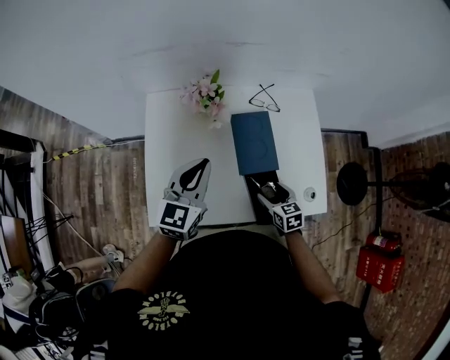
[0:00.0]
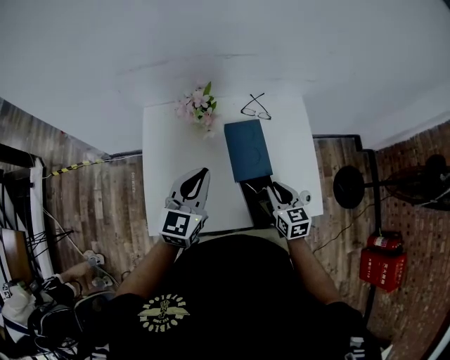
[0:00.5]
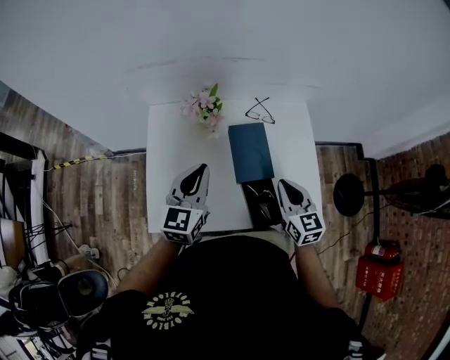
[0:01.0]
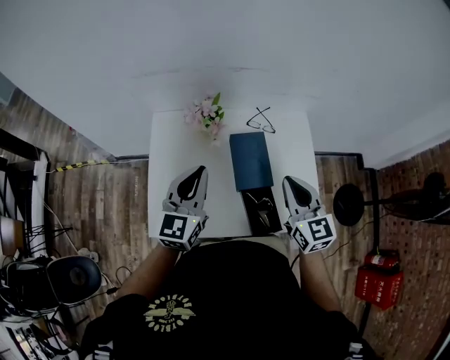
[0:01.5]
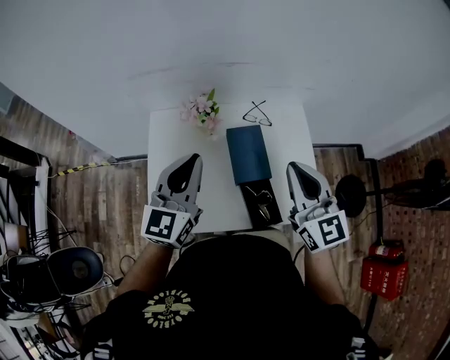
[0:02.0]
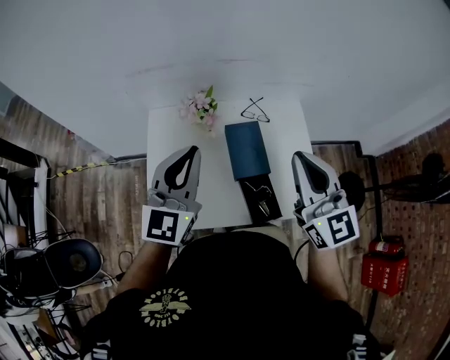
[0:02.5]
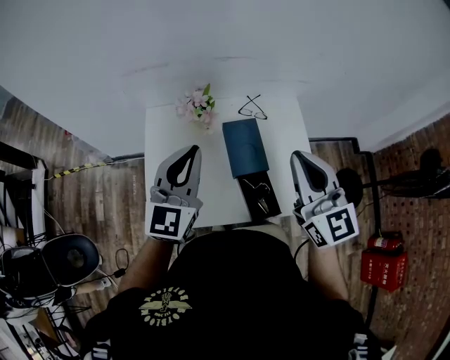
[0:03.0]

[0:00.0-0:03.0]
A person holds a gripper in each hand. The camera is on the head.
0:00.0 to 0:01.5: The right gripper moves upward, approximately 30 cm, tilts its fingers roughly 30 degrees upward, and closes up. The left gripper goes approximately 5 cm upward.
0:01.5 to 0:03.0: The left gripper shifts roughly 10 cm upward. Meanwhile the right gripper travels upward by approximately 15 cm.
